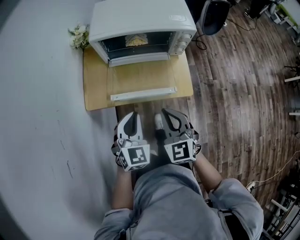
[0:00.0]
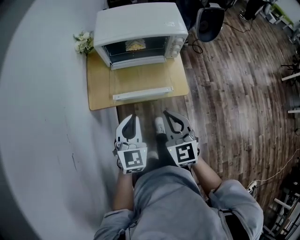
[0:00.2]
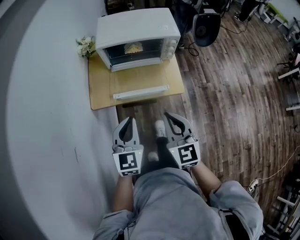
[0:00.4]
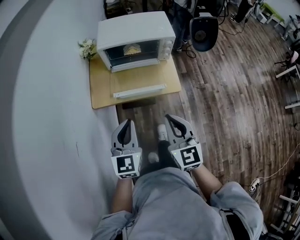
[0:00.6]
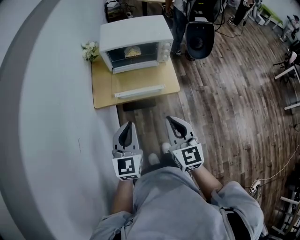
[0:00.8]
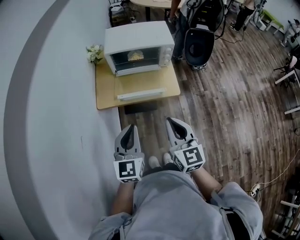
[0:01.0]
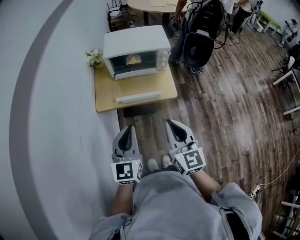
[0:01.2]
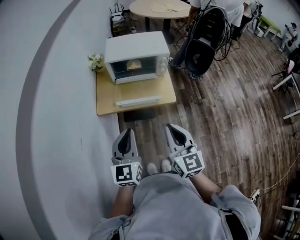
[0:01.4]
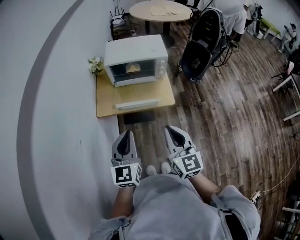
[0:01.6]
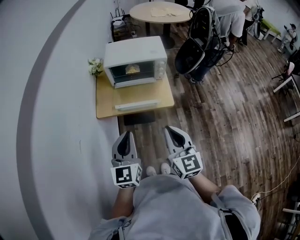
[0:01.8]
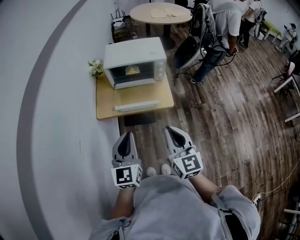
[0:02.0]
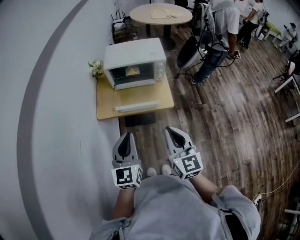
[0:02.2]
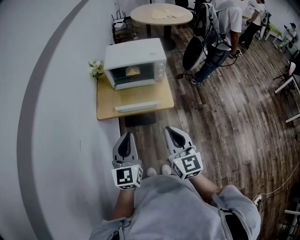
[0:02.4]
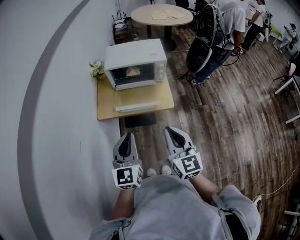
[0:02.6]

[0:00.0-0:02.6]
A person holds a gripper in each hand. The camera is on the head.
0:00.0 to 0:01.2: Both grippers travel together upward and backward, approximately 25 cm. The right gripper swivels some 30 degrees; the left gripper swivels approximately 30 degrees.
0:01.2 to 0:02.6: The grippers move only a little.

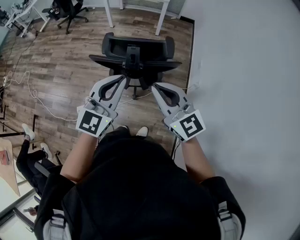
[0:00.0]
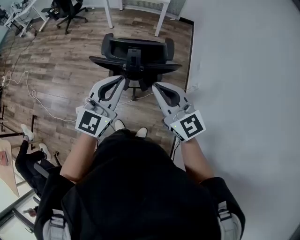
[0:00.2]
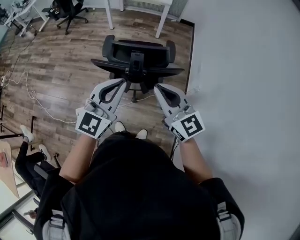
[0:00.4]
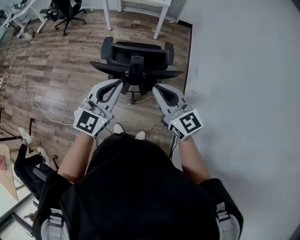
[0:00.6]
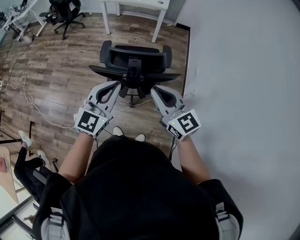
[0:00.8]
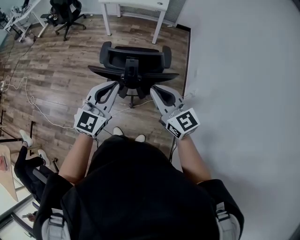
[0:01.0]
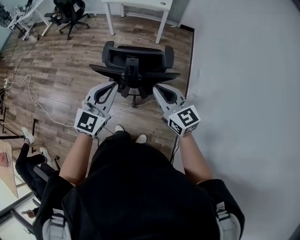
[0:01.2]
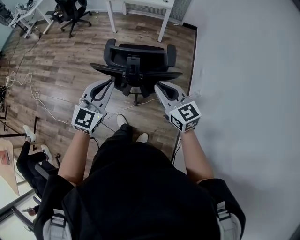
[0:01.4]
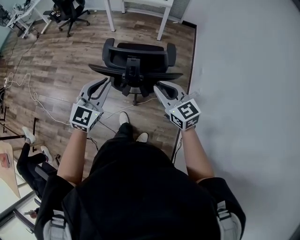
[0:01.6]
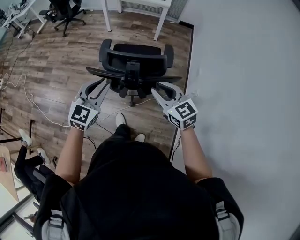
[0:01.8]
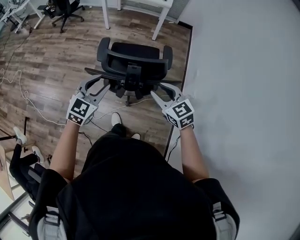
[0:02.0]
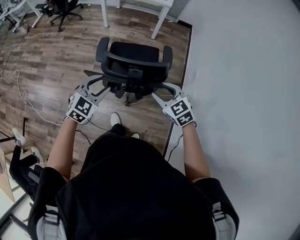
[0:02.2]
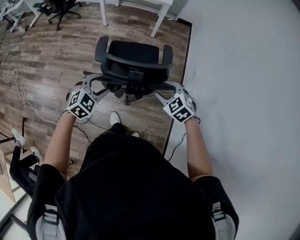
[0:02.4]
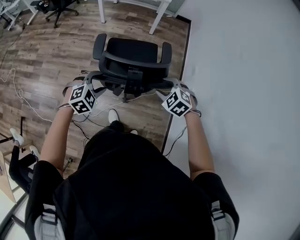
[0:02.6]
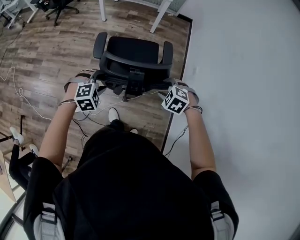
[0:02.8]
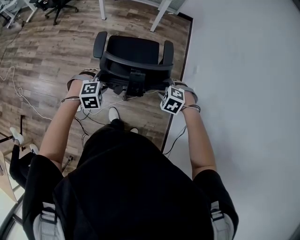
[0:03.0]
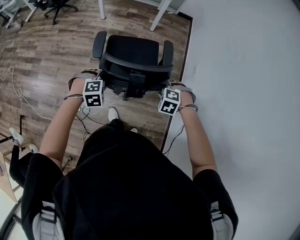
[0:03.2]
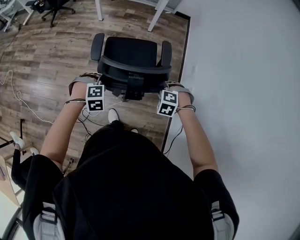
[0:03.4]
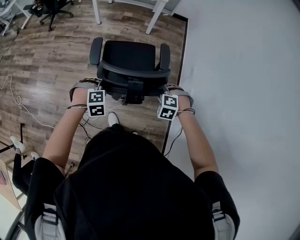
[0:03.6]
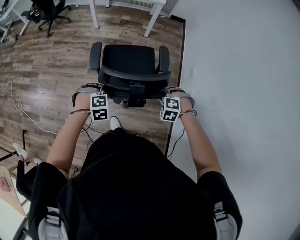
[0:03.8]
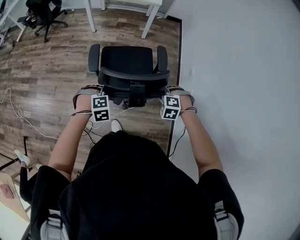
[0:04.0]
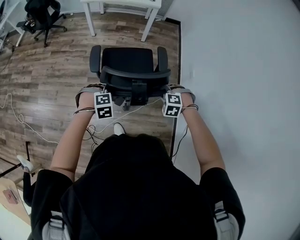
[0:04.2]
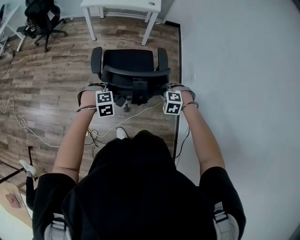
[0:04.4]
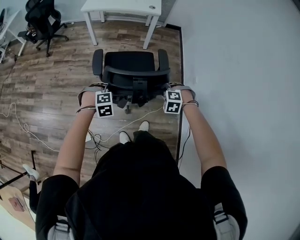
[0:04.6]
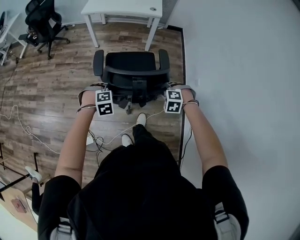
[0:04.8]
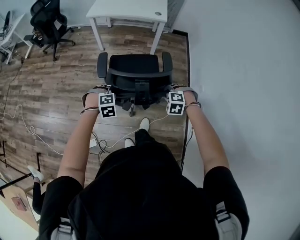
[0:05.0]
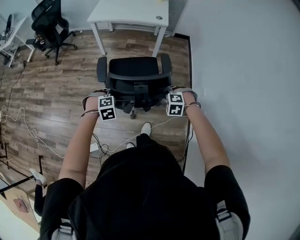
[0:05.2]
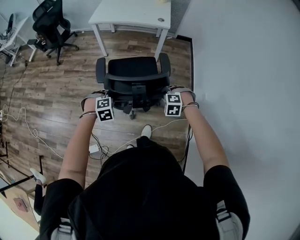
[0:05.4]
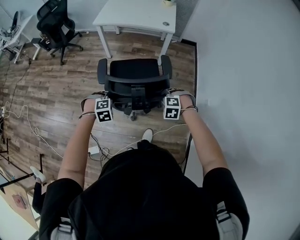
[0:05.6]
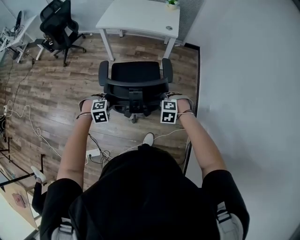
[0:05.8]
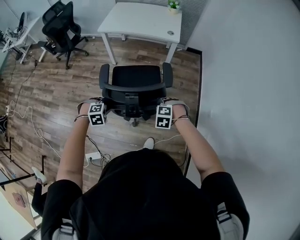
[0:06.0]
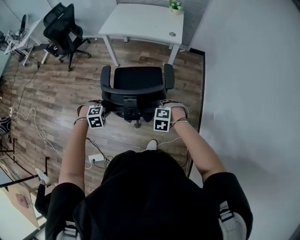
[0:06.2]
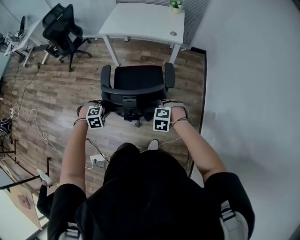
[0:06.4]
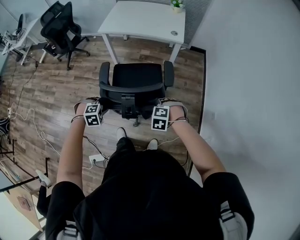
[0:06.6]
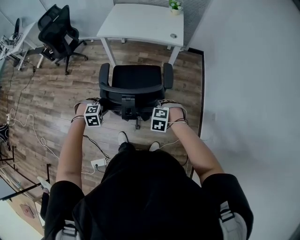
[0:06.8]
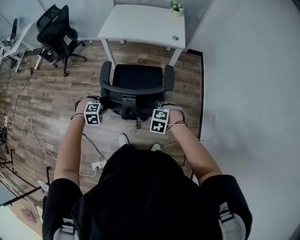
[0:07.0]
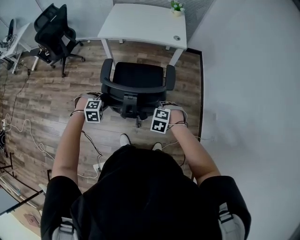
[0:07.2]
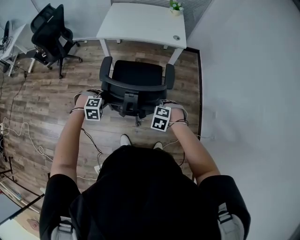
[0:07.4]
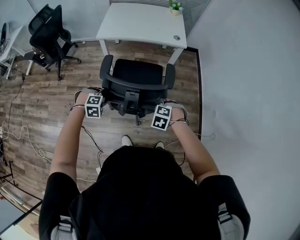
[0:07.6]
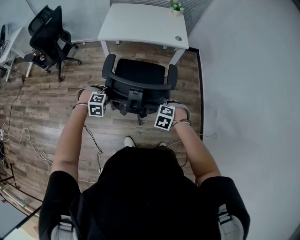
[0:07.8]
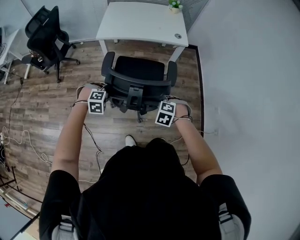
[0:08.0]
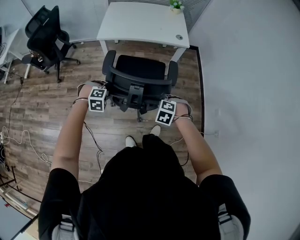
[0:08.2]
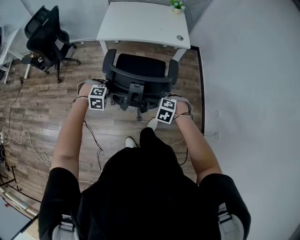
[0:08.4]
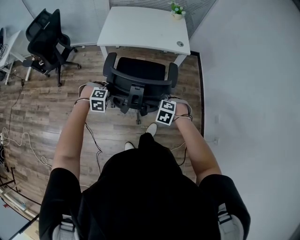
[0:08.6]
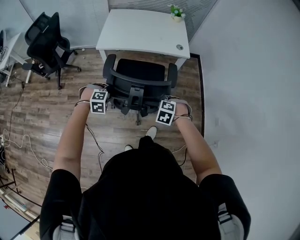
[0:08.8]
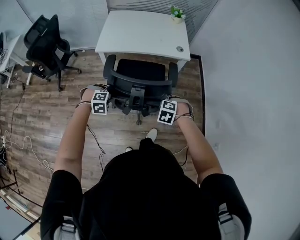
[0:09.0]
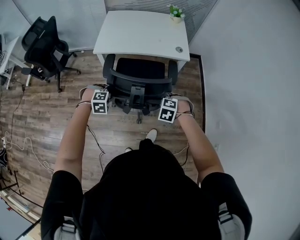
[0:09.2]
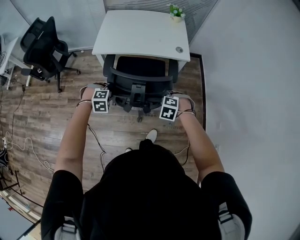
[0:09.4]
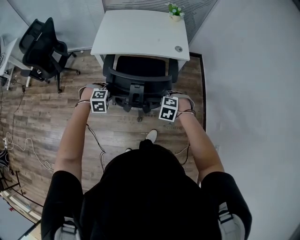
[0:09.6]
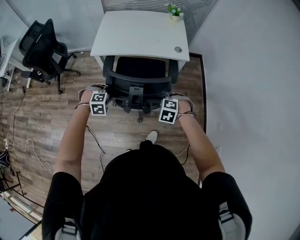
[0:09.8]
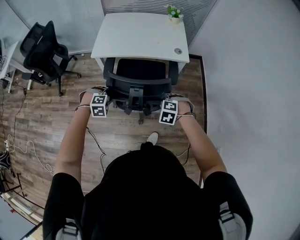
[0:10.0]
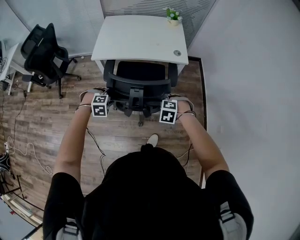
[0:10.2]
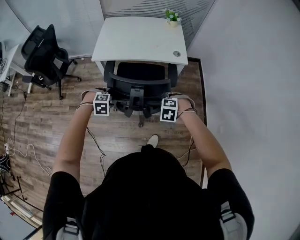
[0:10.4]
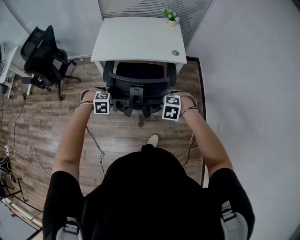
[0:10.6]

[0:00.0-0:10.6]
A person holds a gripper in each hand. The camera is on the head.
0:00.0 to 0:01.6: The right gripper moves forward and downward, roughly 10 cm. The left gripper goes some 10 cm forward, downward and to the left.
0:01.6 to 0:03.0: Both grippers travel together downward, approximately 20 cm. The right gripper tilts its fingers some 60 degrees downward, and opens; the left gripper tips its fingers downward by approximately 50 degrees, and opens.
0:03.0 to 0:04.6: The left gripper ends up approximately 15 cm from where it was, and closes, while the right gripper changes place by roughly 10 cm, and closes.
0:04.6 to 0:06.0: The right gripper shifts approximately 15 cm forward. Meanwhile the left gripper is displaced forward and to the left by roughly 15 cm.
0:06.0 to 0:07.6: The left gripper ends up some 25 cm from where it was. Meanwhile the right gripper moves about 20 cm.
0:07.6 to 0:09.0: The two grippers go approximately 15 cm forward.
0:09.0 to 0:10.6: The right gripper shifts by approximately 5 cm. Meanwhile the left gripper opens.

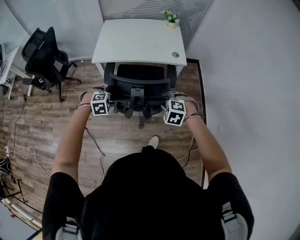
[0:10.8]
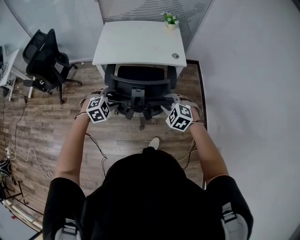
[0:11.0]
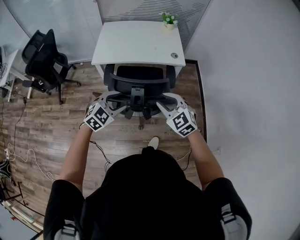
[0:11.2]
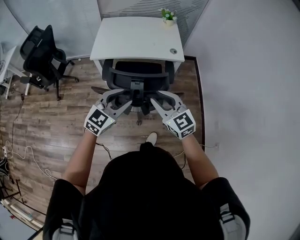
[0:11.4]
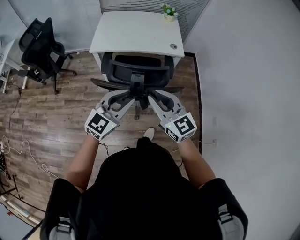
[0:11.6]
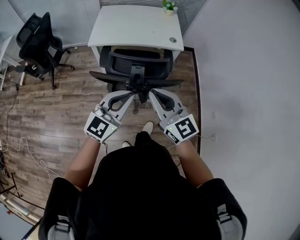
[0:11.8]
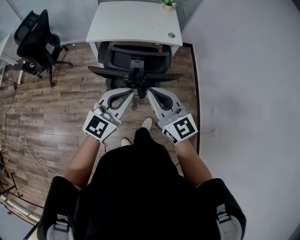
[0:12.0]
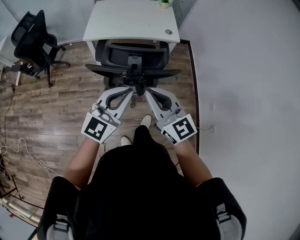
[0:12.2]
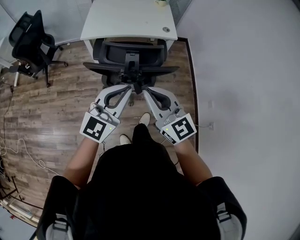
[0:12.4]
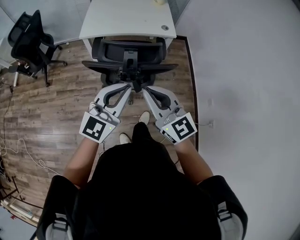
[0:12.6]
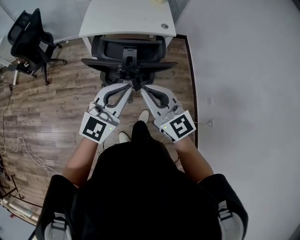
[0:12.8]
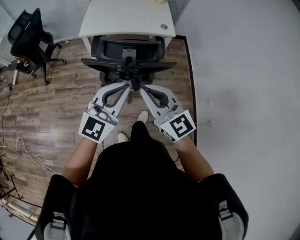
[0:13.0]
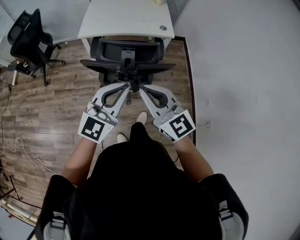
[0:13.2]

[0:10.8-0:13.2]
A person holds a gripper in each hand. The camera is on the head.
0:10.8 to 0:12.0: The left gripper goes roughly 30 cm upward, backward and to the right, angles its fingers upward, by some 70 degrees, and closes its fingers. The right gripper heads upward and backward, covering some 25 cm, tips its fingers upward by roughly 60 degrees, and closes its fingers.
0:12.0 to 0:13.2: The grippers stay close to where they were, moving slightly.

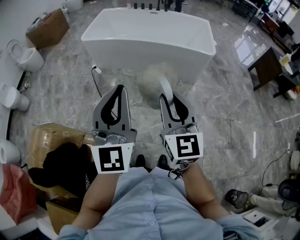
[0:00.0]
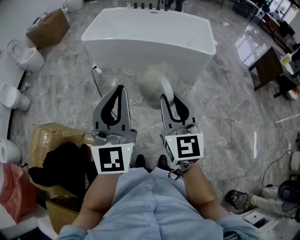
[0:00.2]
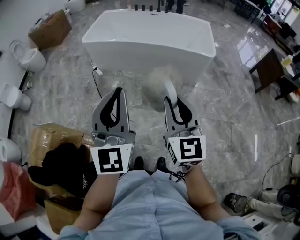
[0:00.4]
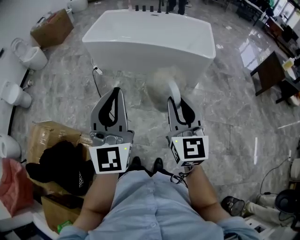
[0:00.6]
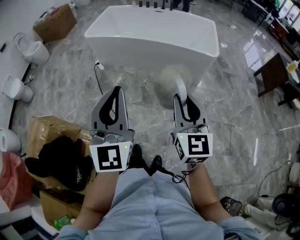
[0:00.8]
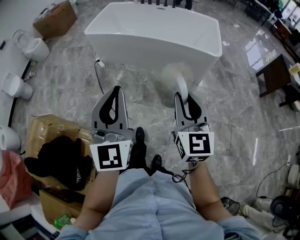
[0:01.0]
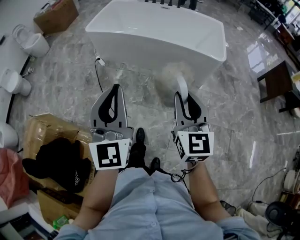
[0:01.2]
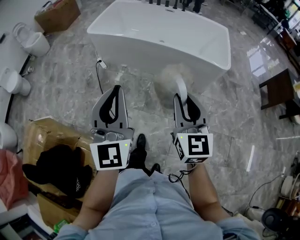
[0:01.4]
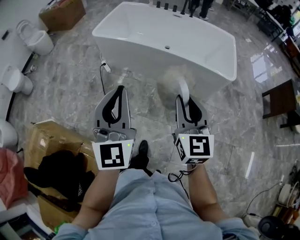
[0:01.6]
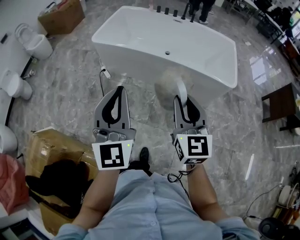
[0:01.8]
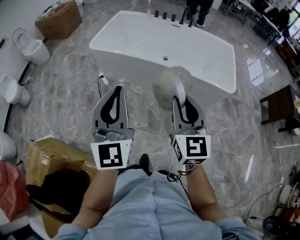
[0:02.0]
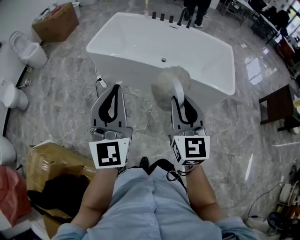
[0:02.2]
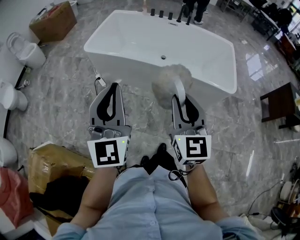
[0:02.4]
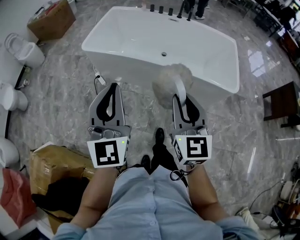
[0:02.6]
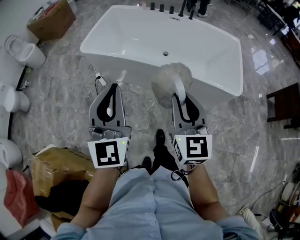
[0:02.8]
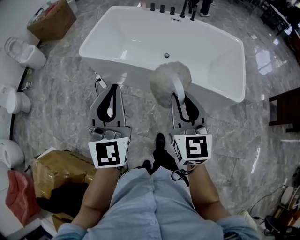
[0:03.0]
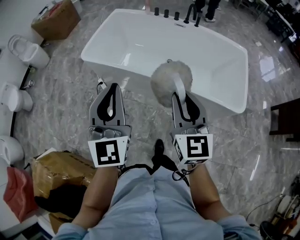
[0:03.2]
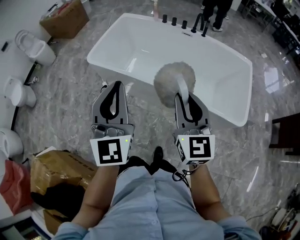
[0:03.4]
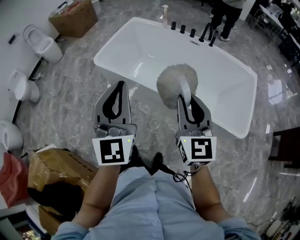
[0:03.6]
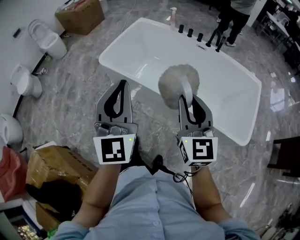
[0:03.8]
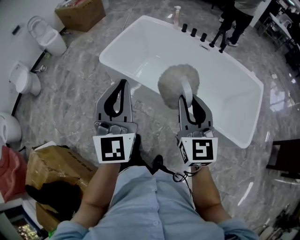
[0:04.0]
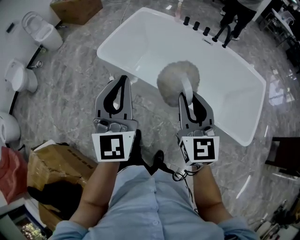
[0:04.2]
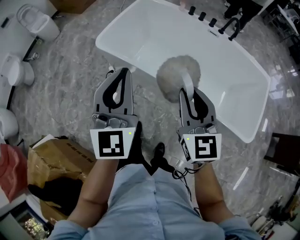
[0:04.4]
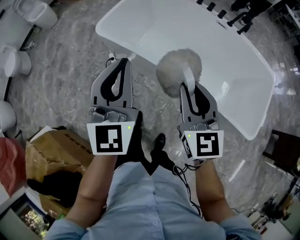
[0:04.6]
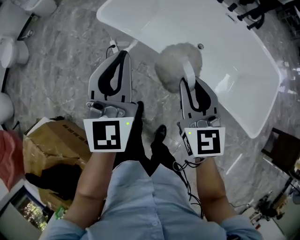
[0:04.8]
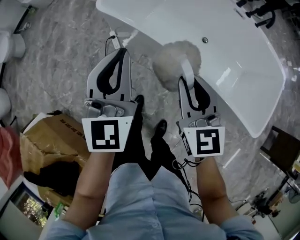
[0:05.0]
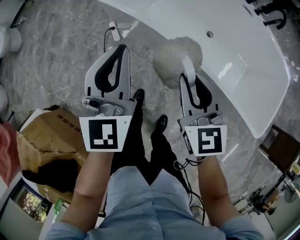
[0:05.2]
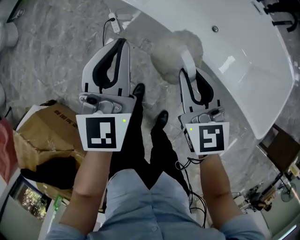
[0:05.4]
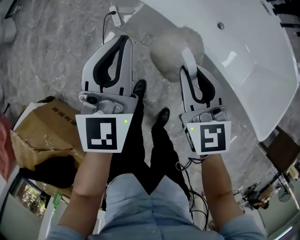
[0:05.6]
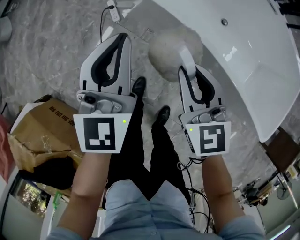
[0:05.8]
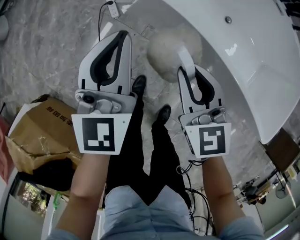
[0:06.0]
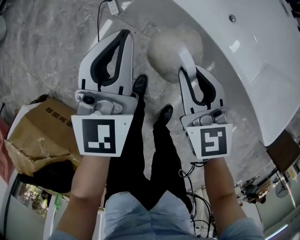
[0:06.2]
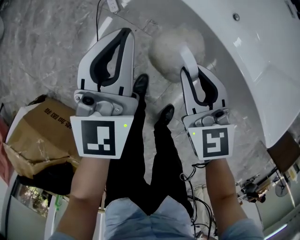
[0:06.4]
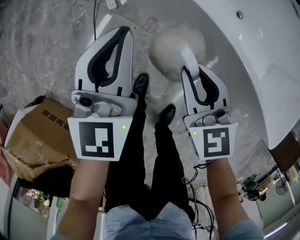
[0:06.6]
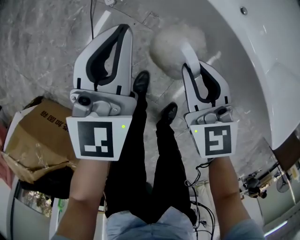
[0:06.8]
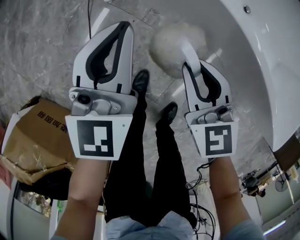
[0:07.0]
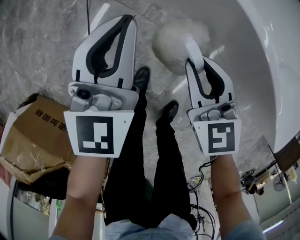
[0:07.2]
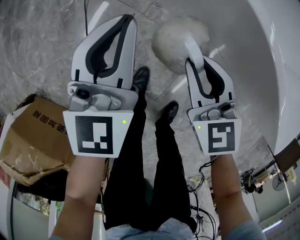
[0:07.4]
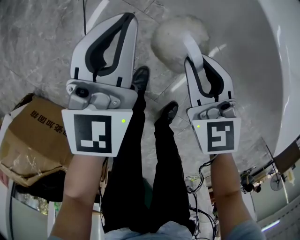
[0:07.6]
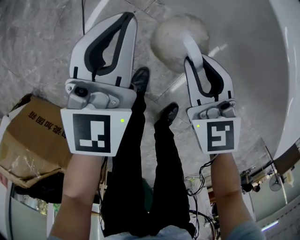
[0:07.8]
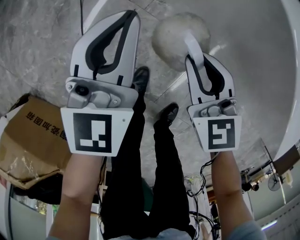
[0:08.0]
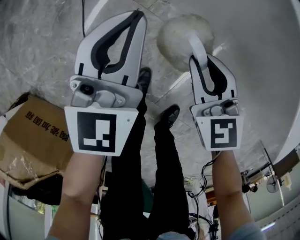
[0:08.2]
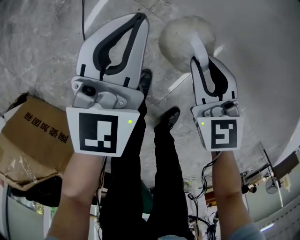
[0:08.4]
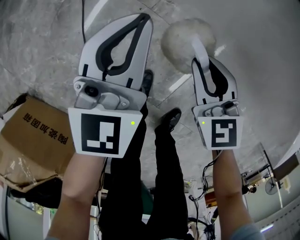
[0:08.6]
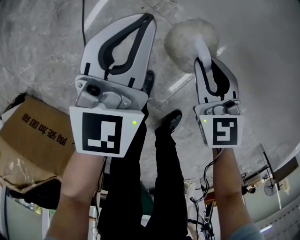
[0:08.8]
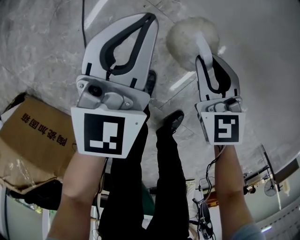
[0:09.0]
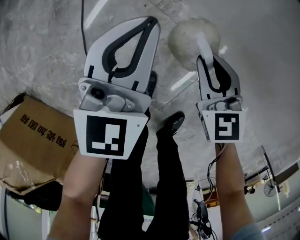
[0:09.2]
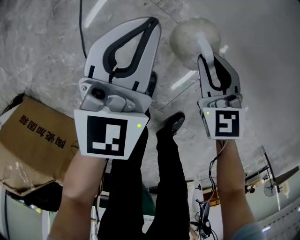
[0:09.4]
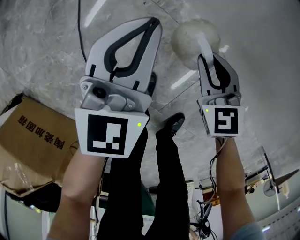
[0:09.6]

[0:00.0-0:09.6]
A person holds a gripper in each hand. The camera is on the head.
0:00.0 to 0:01.6: Both grippers move forward, about 20 cm.
0:01.6 to 0:03.2: Both grippers move forward, some 35 cm.
0:03.2 to 0:04.8: The grippers both shift forward, to the left and downward by roughly 30 cm. The right gripper turns by approximately 20 degrees.
0:04.8 to 0:06.4: The two grippers go approximately 35 cm downward.
0:06.4 to 0:08.0: The two grippers go some 20 cm downward.
0:08.0 to 0:09.6: Both grippers travel together downward, some 15 cm.
